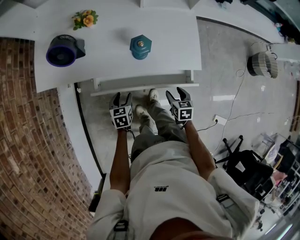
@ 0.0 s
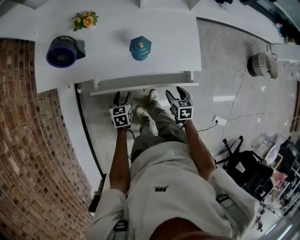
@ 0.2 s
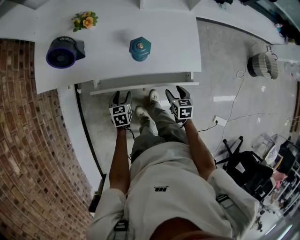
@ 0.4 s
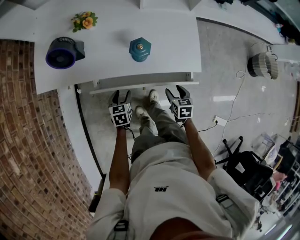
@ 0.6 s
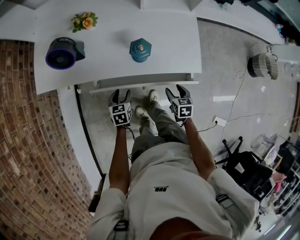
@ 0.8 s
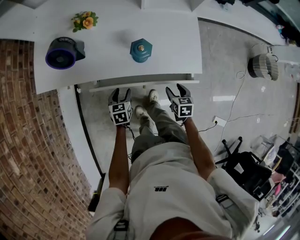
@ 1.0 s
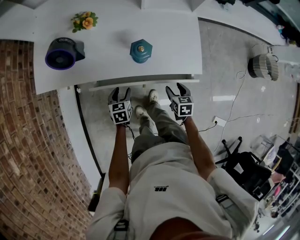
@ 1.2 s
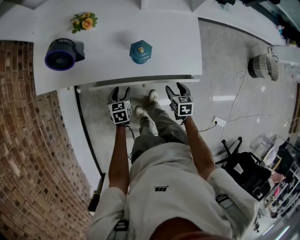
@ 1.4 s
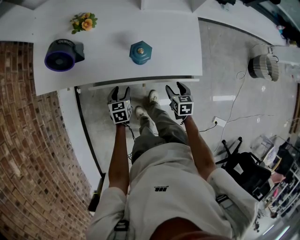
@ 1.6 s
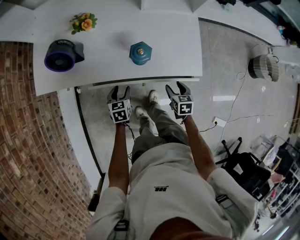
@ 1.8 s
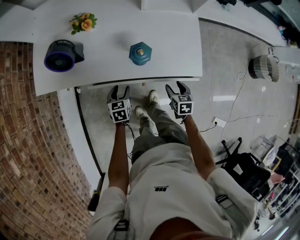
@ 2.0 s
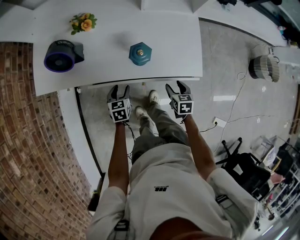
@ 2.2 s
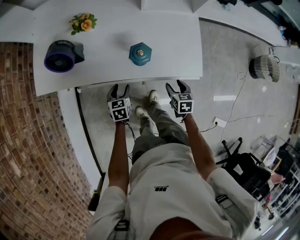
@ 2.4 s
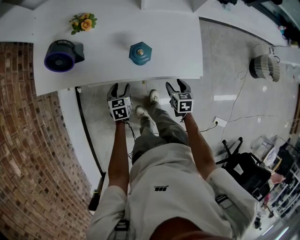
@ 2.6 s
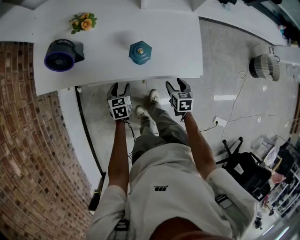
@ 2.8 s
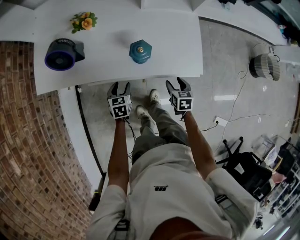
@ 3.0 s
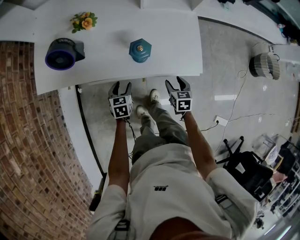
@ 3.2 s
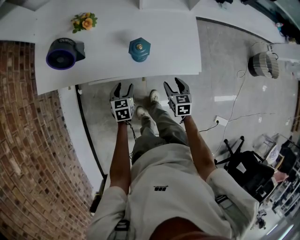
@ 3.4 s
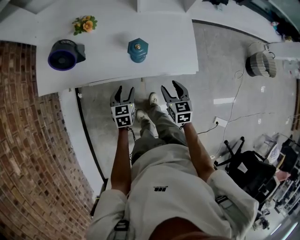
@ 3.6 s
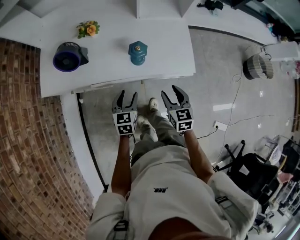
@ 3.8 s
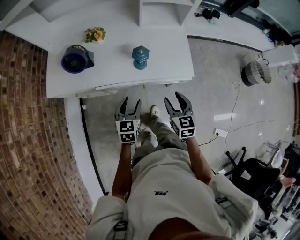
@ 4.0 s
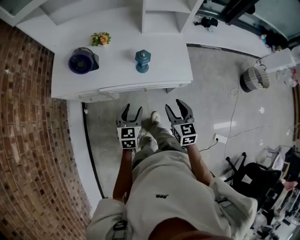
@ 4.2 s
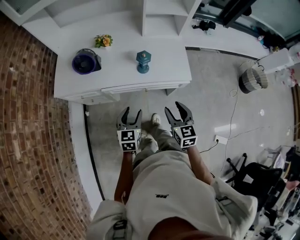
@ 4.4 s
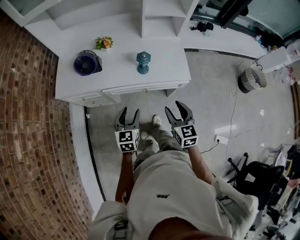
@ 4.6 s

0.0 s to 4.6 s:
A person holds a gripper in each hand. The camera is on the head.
0.0 to 1.6 s: The grippers both shift forward by approximately 5 cm.
1.6 to 3.0 s: There are only small adjustments of the grippers.
3.0 to 4.6 s: The grippers both shift upward and backward by about 30 cm. The right gripper rotates approximately 30 degrees. Meanwhile the left gripper swivels approximately 30 degrees.

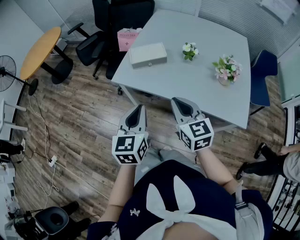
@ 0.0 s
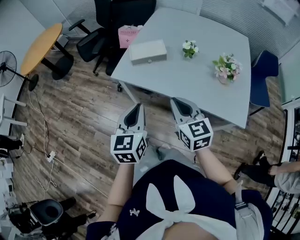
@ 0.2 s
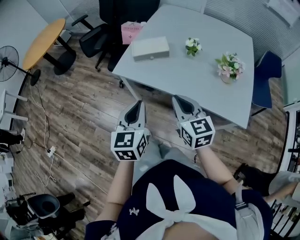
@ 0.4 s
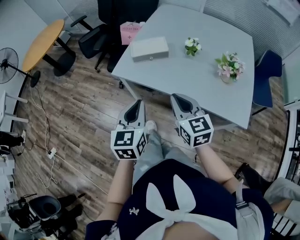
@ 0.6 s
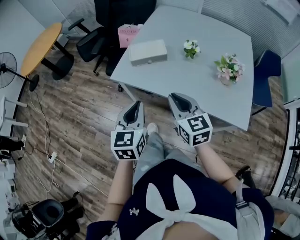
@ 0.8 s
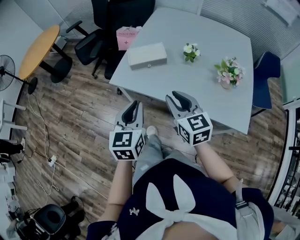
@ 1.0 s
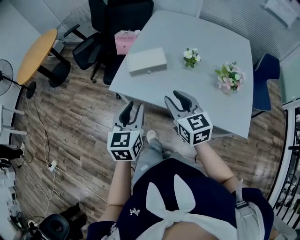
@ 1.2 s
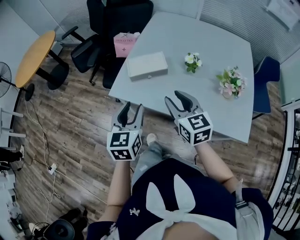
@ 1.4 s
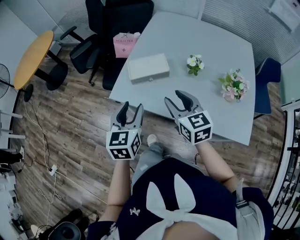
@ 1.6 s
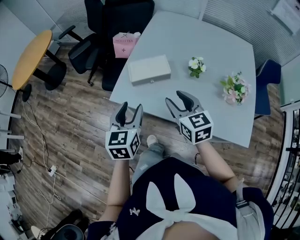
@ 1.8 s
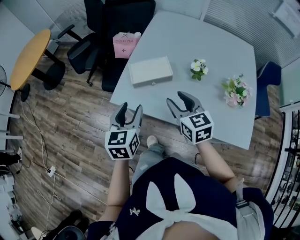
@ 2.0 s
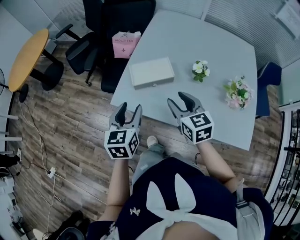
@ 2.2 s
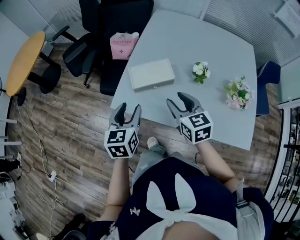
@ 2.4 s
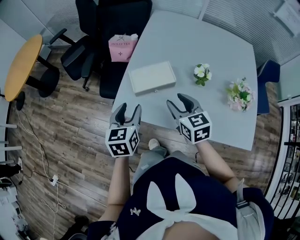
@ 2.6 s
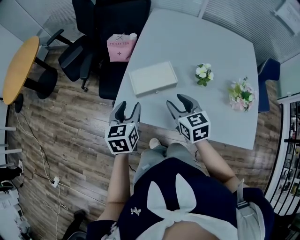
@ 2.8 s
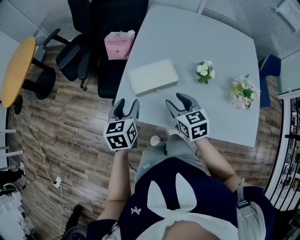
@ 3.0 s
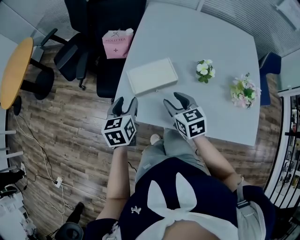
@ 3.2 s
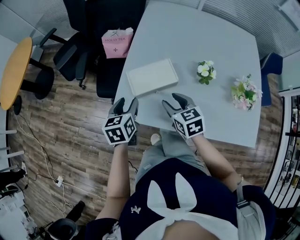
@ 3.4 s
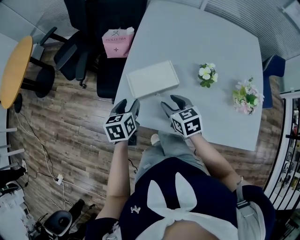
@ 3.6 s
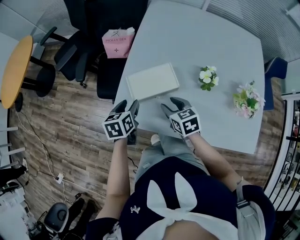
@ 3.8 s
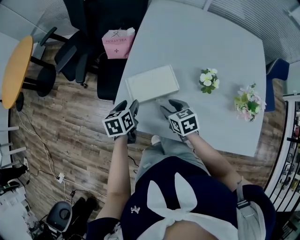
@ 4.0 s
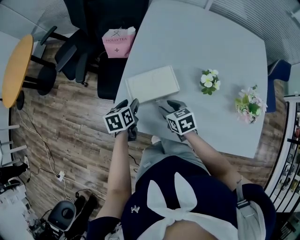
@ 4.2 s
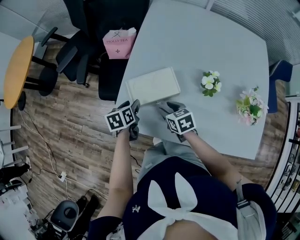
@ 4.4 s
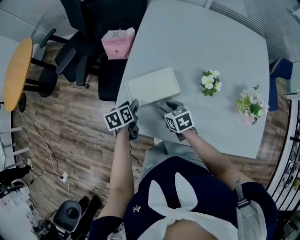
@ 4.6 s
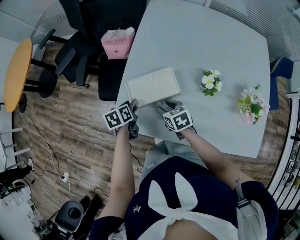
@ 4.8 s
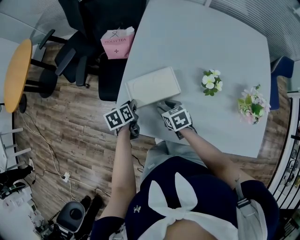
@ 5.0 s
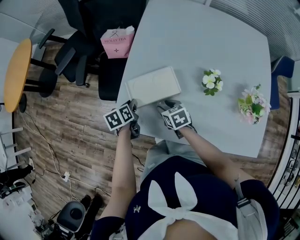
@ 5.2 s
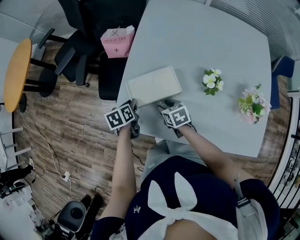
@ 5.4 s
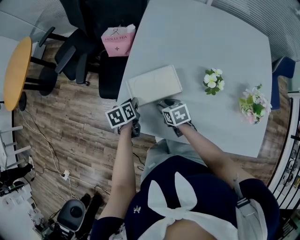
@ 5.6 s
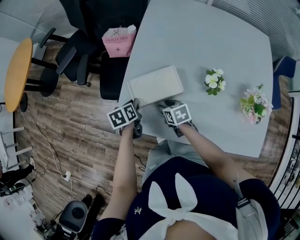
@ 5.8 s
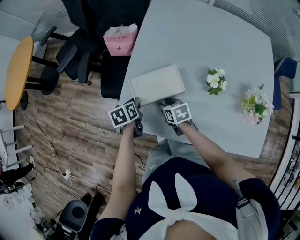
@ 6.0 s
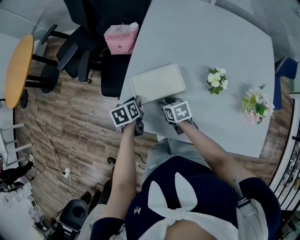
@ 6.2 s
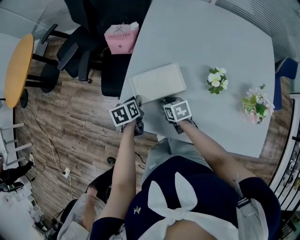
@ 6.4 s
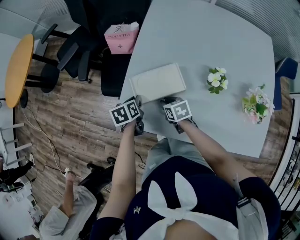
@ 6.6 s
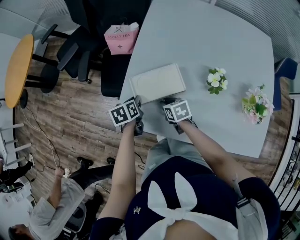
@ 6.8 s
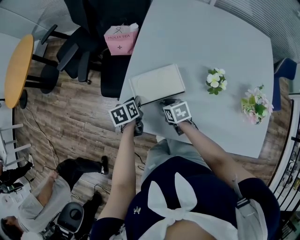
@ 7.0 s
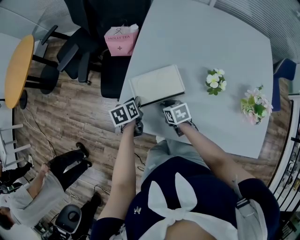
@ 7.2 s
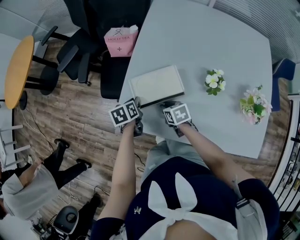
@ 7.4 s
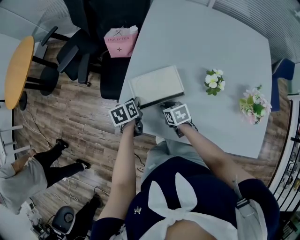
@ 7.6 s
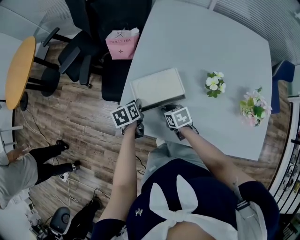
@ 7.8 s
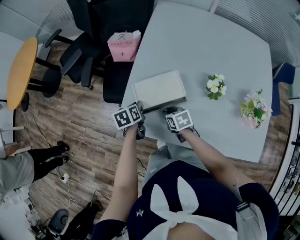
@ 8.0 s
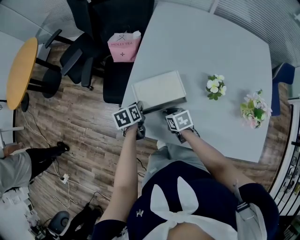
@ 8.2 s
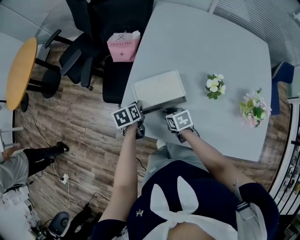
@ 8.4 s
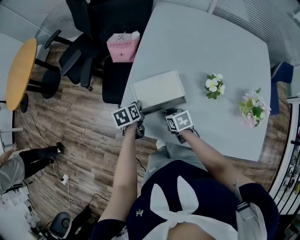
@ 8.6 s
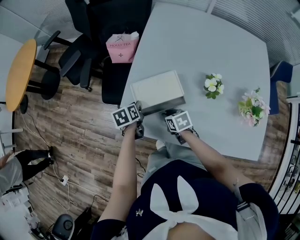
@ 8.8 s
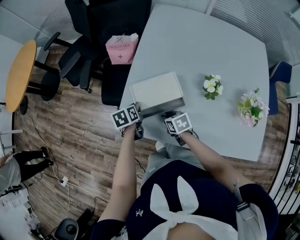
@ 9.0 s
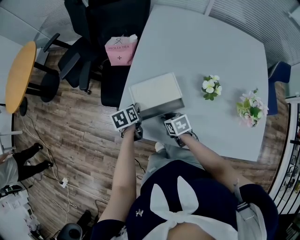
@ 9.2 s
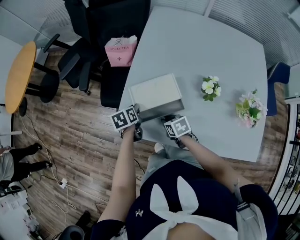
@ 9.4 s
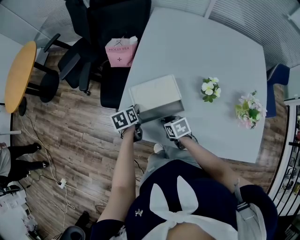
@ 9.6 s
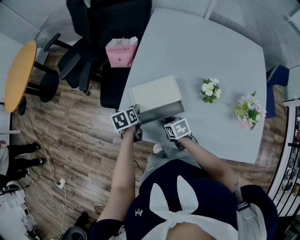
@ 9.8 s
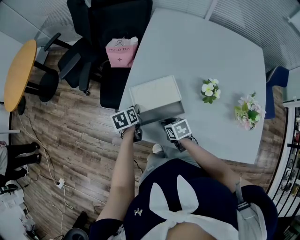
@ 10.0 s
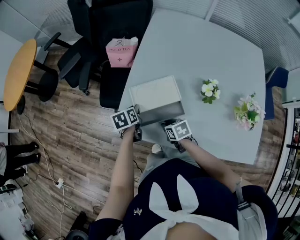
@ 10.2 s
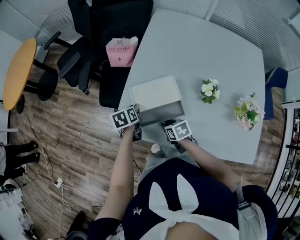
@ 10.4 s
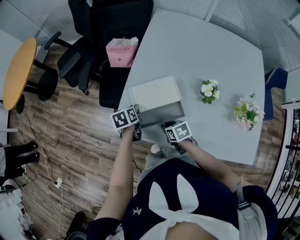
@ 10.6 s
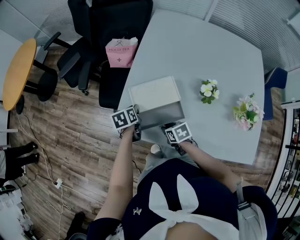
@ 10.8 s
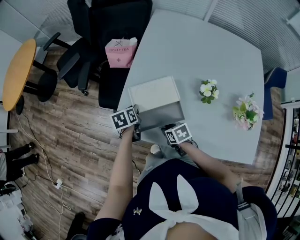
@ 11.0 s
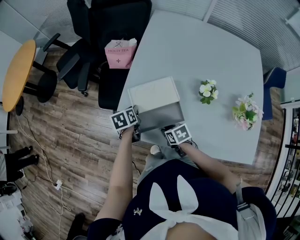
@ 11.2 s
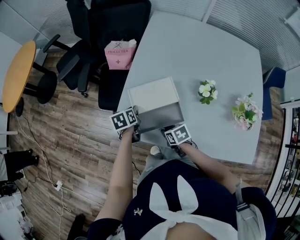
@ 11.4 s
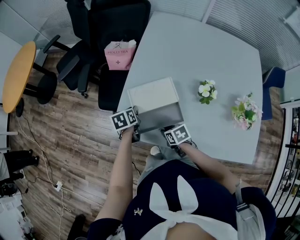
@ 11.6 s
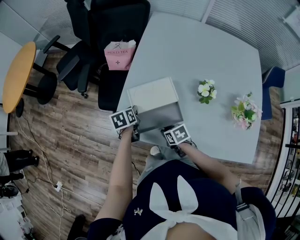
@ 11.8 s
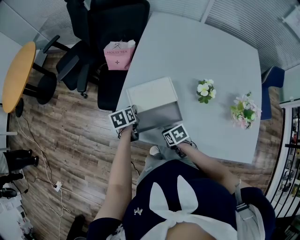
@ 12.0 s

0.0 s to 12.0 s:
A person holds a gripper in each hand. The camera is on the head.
0.0 to 1.6 s: The grippers both shift forward by approximately 15 cm. The left gripper opens its fingers; the right gripper opens.
1.6 to 3.0 s: Both grippers move forward and downward, about 15 cm.
3.0 to 4.4 s: The grippers both shift downward and forward by some 15 cm. The left gripper turns by approximately 30 degrees; the right gripper changes its angle by approximately 20 degrees.
4.4 to 6.0 s: The left gripper closes up; the right gripper changes place by roughly 5 cm.
6.0 to 9.0 s: The grippers move only a little.
9.0 to 10.4 s: The grippers stay close to where they were, moving slightly.
10.4 to 12.0 s: The grippers move only a little.

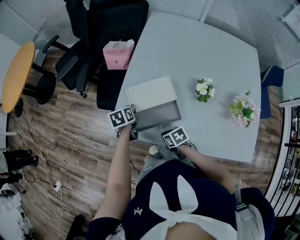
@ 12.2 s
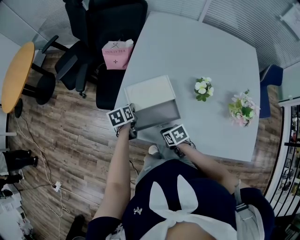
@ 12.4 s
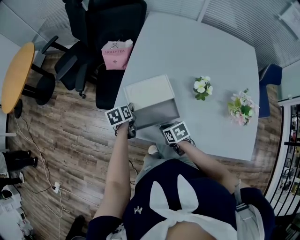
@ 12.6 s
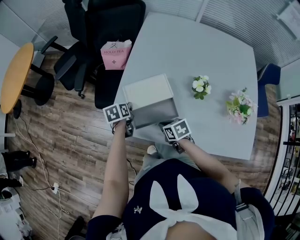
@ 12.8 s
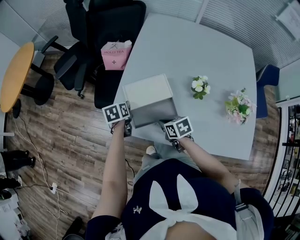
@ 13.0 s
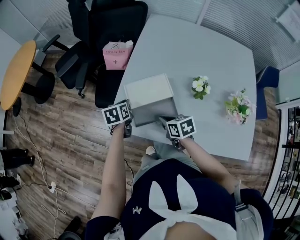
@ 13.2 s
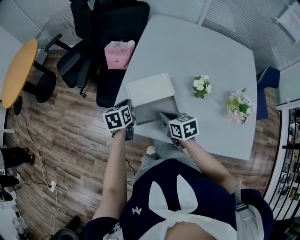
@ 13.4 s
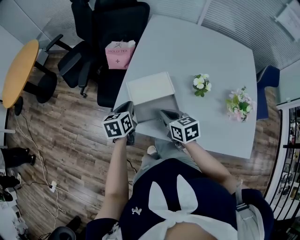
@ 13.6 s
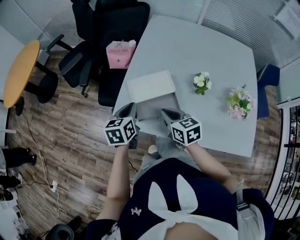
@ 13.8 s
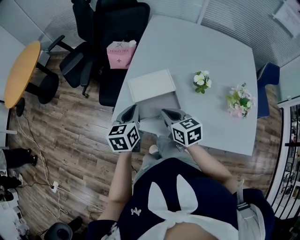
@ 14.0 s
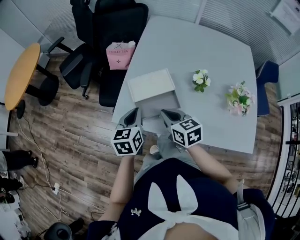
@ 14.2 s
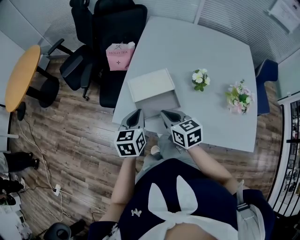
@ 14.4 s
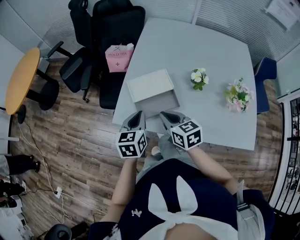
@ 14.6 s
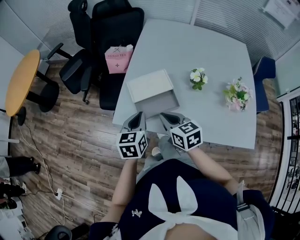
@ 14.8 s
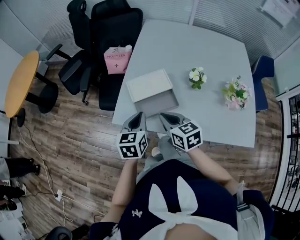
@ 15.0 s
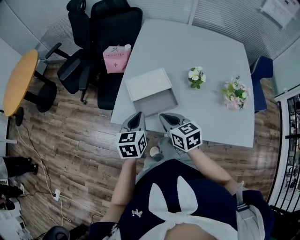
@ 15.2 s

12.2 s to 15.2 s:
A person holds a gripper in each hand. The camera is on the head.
12.2 to 13.8 s: The right gripper travels upward by roughly 20 cm, and rotates roughly 40 degrees. Meanwhile the left gripper is displaced upward and backward by roughly 15 cm, and changes its angle by about 20 degrees.
13.8 to 15.2 s: Both grippers travel together backward, some 5 cm.

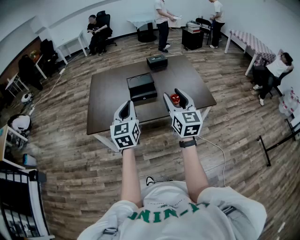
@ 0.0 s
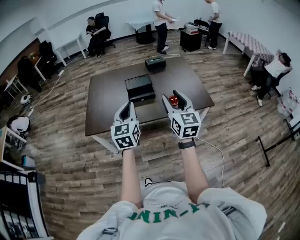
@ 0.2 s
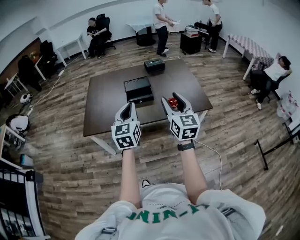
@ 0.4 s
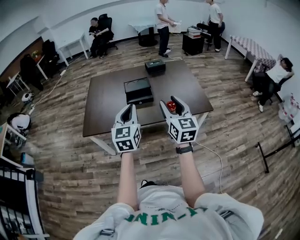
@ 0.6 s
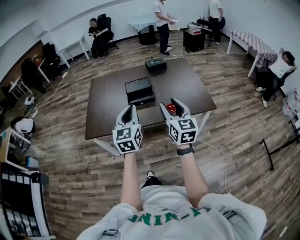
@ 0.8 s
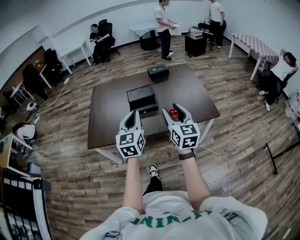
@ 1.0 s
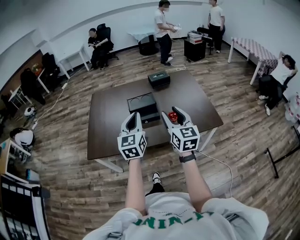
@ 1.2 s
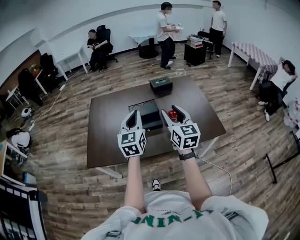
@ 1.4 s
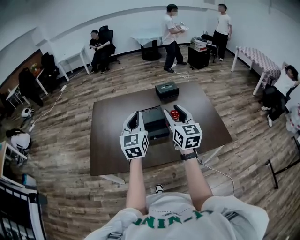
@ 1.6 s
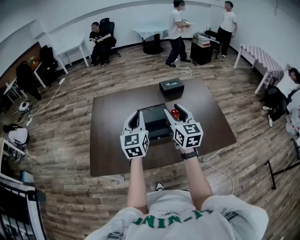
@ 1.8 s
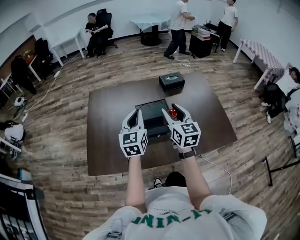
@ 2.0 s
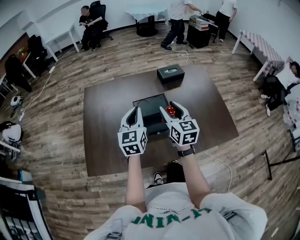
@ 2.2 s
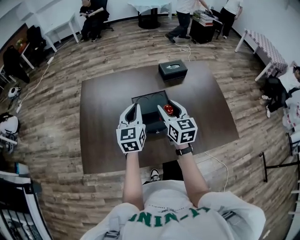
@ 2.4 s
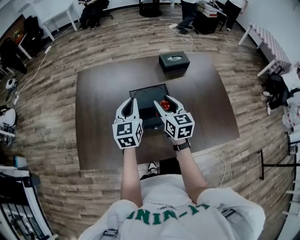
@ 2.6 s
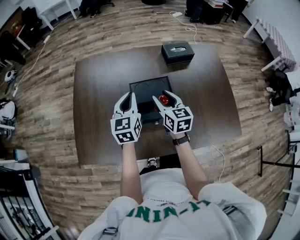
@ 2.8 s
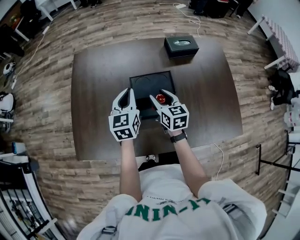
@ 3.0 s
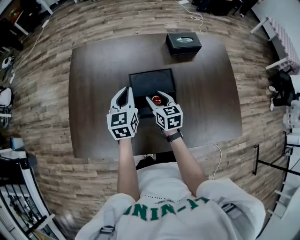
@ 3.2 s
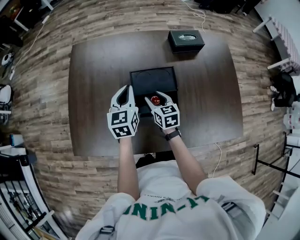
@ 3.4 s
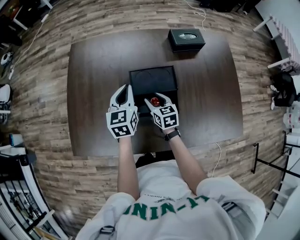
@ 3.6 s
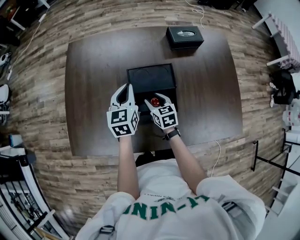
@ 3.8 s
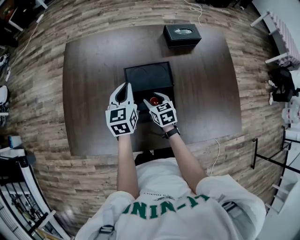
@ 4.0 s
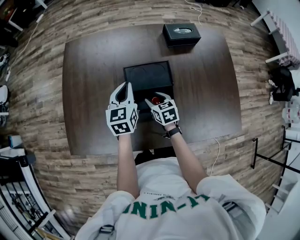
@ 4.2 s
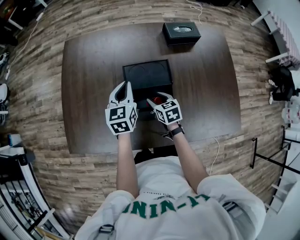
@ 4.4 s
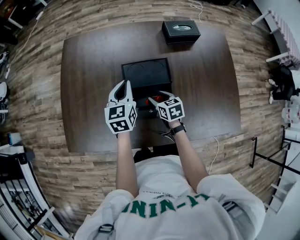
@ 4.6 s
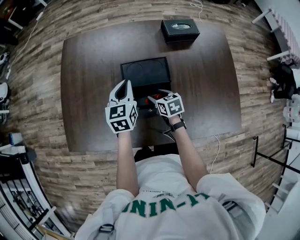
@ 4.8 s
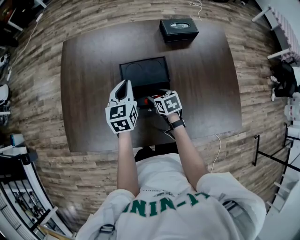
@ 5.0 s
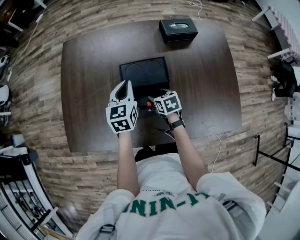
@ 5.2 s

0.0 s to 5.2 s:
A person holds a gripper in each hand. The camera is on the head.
0.0 to 1.8 s: Both grippers move forward, roughly 35 cm.
1.8 to 3.4 s: The two grippers go about 35 cm downward and forward. The right gripper angles its fingers downward, by about 30 degrees, while the left gripper swivels about 20 degrees.
3.4 to 5.2 s: The right gripper heads downward and to the right, covering approximately 10 cm, and changes its angle by some 20 degrees. The left gripper ends up about 5 cm from where it was.
